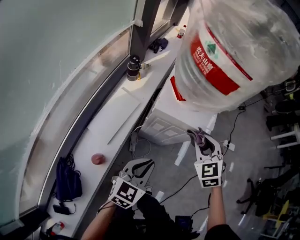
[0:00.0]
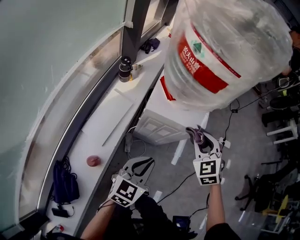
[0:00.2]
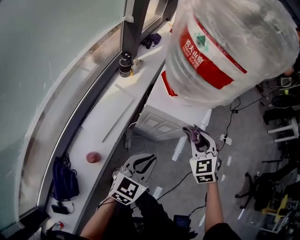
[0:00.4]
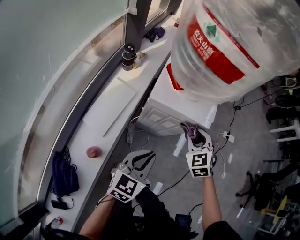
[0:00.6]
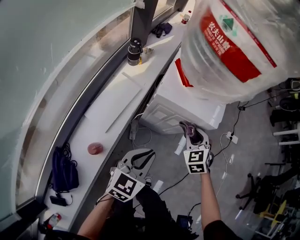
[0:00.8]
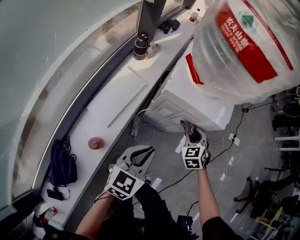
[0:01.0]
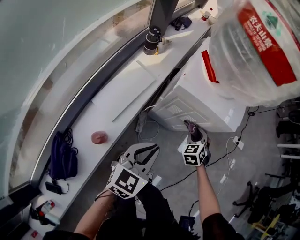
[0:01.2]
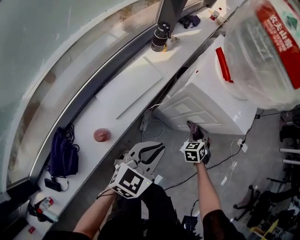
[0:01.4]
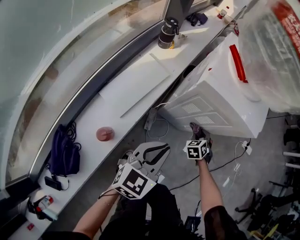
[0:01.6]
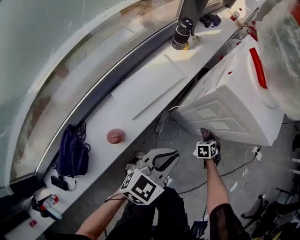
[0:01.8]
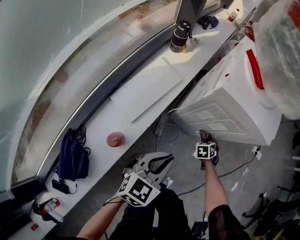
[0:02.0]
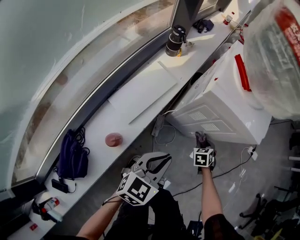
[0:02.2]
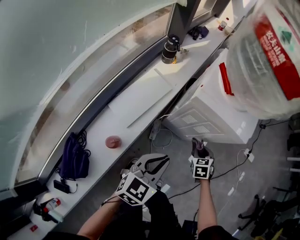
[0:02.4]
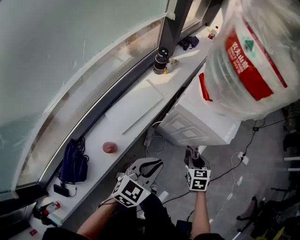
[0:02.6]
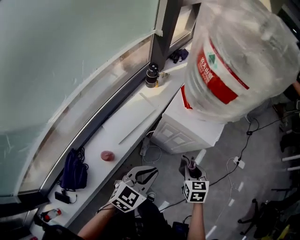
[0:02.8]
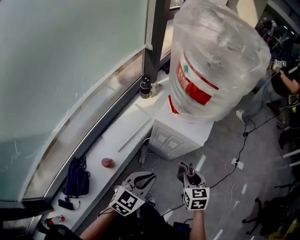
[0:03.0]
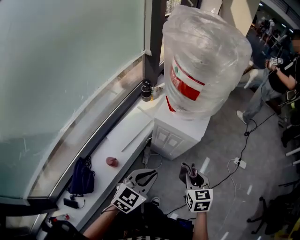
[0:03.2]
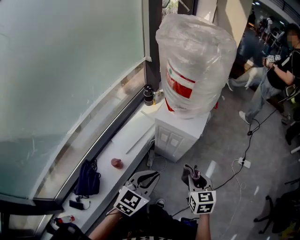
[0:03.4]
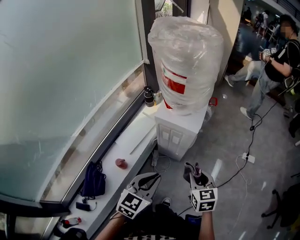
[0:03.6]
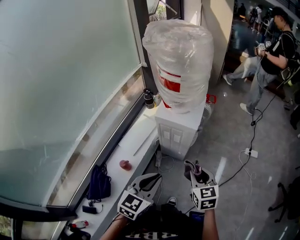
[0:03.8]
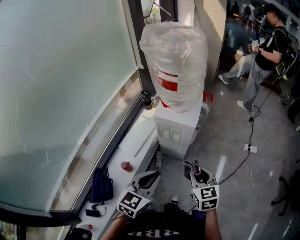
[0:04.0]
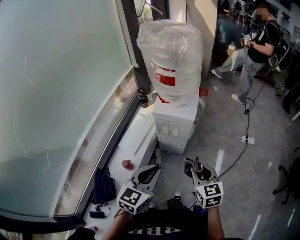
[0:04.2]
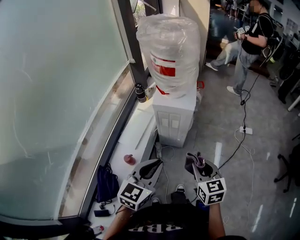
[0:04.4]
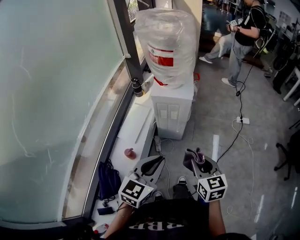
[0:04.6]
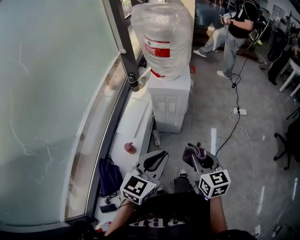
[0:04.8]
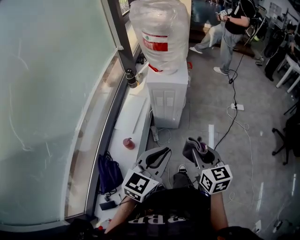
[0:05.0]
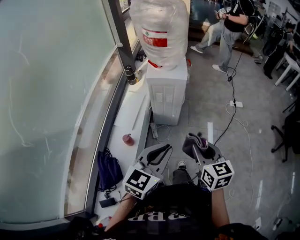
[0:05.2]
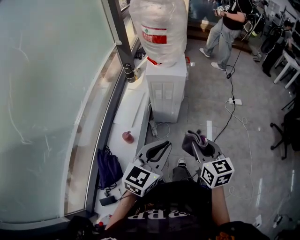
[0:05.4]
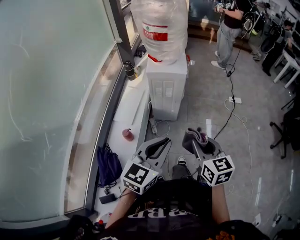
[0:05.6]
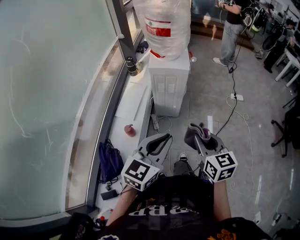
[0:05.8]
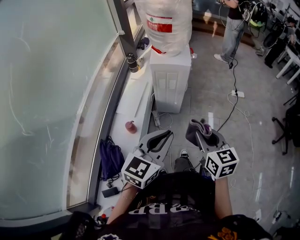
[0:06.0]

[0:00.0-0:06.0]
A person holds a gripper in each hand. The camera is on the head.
0:00.0 to 0:01.6: The left gripper heads downward, covering some 10 cm. Meanwhile the right gripper heads downward, covering roughly 40 cm, and rotates roughly 20 degrees.
0:01.6 to 0:03.0: The left gripper moves upward, about 20 cm, while the right gripper shifts about 35 cm upward, and changes its angle by approximately 40 degrees.
0:03.0 to 0:04.4: The two grippers go approximately 25 cm backward and upward.
0:04.4 to 0:06.0: Both grippers travel together backward, roughly 15 cm.

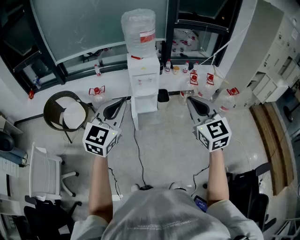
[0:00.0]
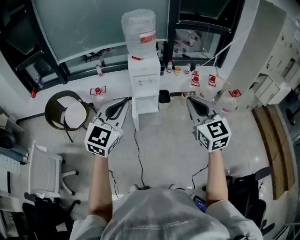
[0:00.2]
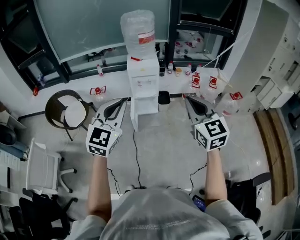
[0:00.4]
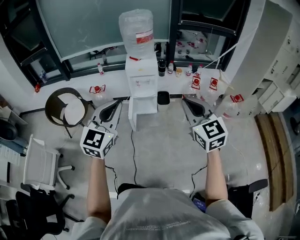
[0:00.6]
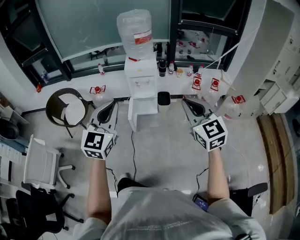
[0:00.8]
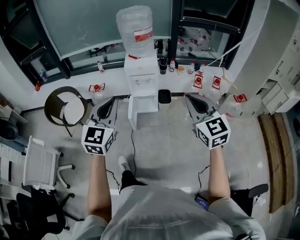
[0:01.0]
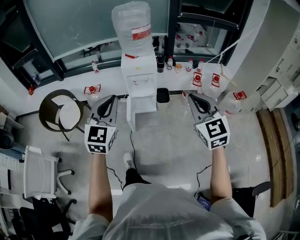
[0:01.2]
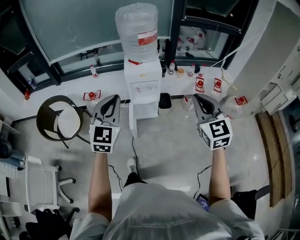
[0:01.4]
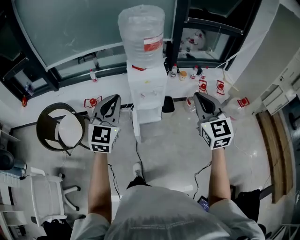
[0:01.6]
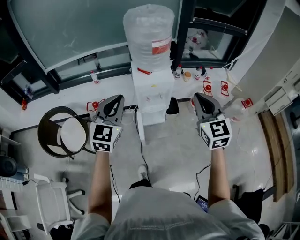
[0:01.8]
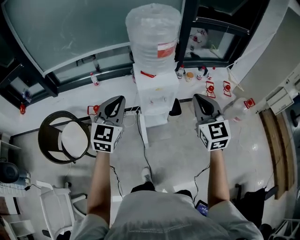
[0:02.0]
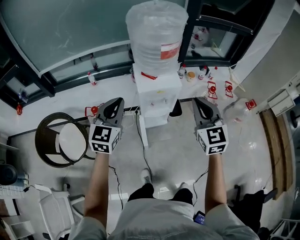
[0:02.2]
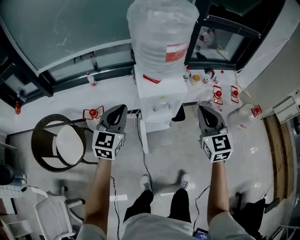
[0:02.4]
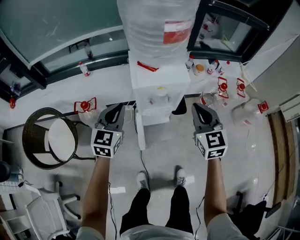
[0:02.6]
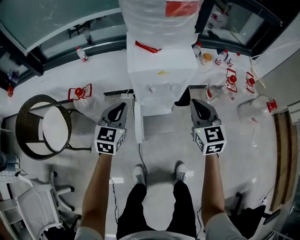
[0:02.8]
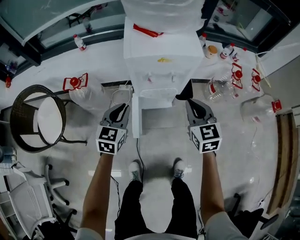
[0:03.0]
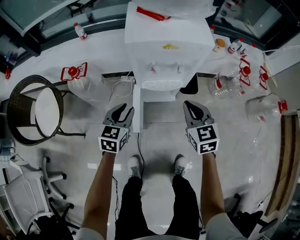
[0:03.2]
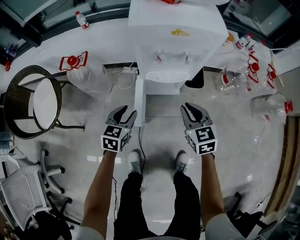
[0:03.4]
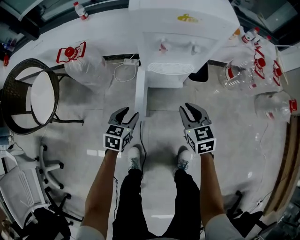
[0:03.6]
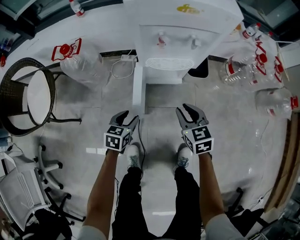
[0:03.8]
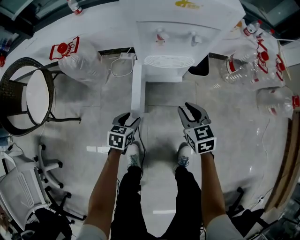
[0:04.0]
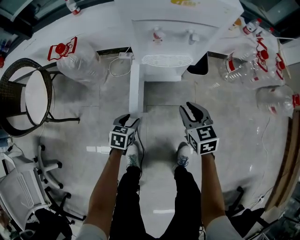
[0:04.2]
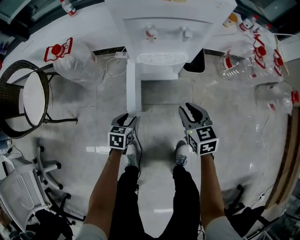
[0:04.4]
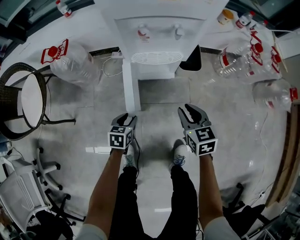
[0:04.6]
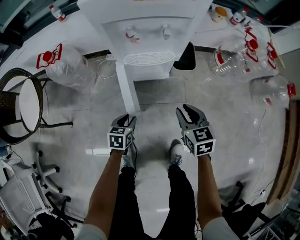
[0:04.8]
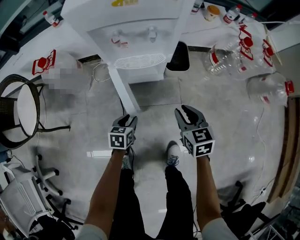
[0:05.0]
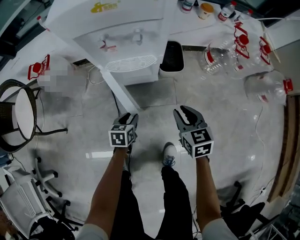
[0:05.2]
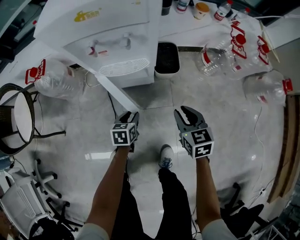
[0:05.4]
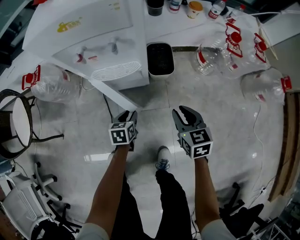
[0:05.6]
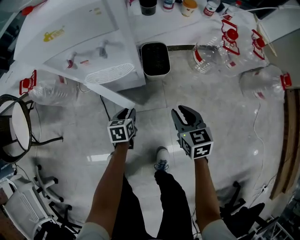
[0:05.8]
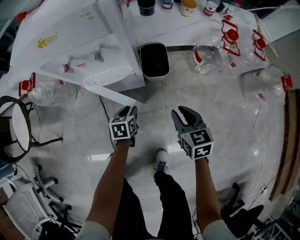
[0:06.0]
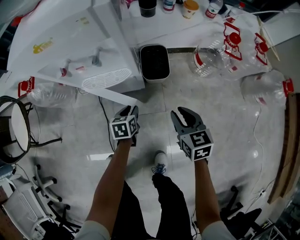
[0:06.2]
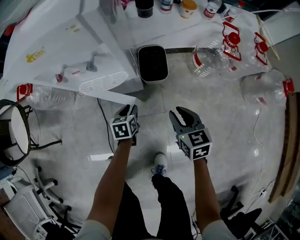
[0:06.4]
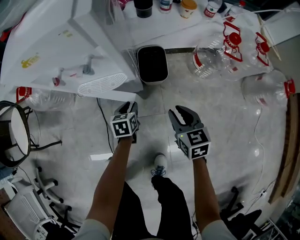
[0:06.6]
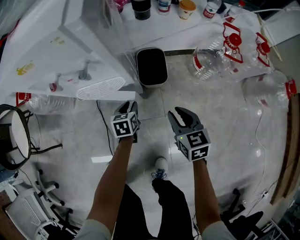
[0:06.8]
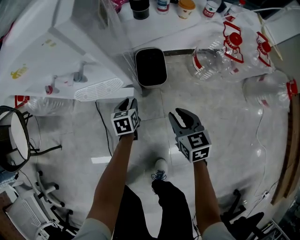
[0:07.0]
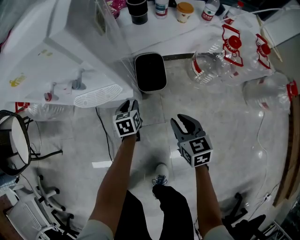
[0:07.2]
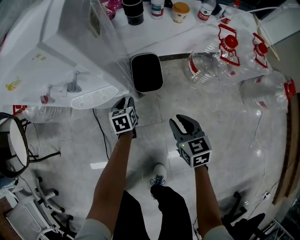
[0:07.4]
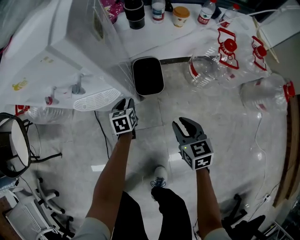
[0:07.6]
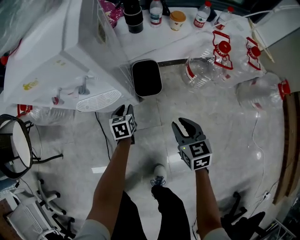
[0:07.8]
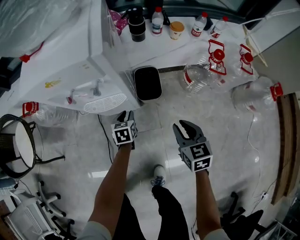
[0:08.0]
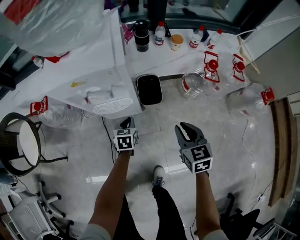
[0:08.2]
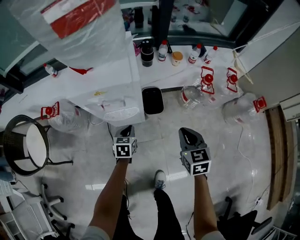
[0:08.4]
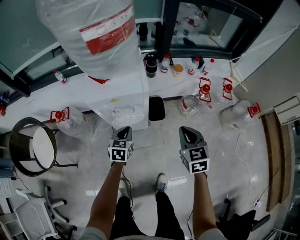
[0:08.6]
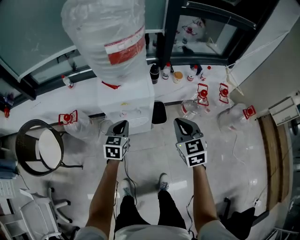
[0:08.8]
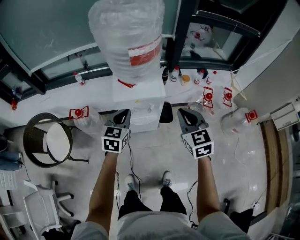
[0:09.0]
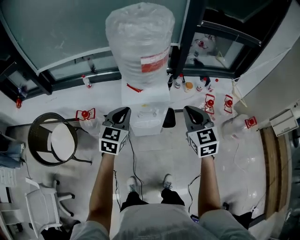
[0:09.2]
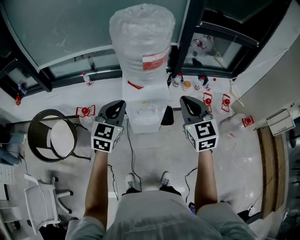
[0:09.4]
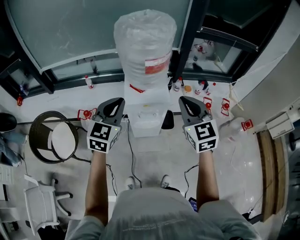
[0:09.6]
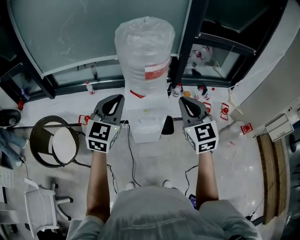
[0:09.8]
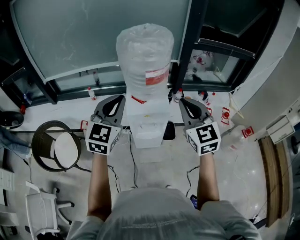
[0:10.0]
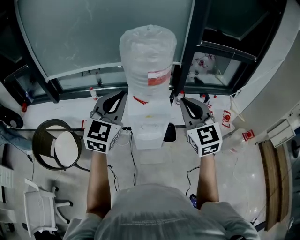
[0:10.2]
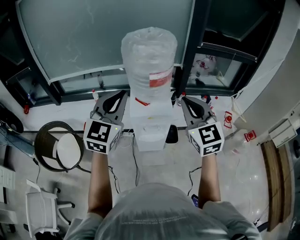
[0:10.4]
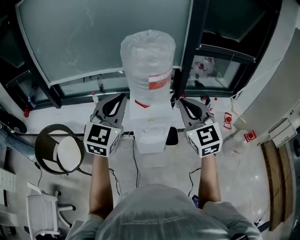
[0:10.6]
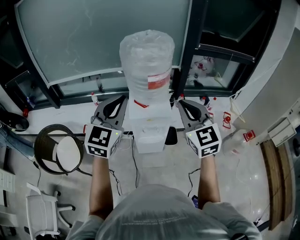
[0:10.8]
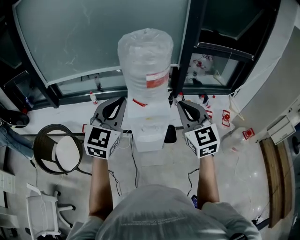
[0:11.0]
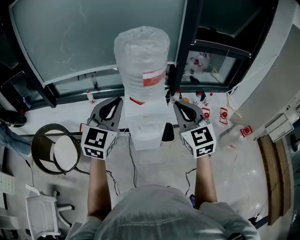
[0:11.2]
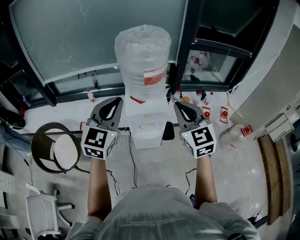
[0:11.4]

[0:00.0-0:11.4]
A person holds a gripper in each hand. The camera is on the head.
0:00.0 to 0:01.4: Both grippers travel together forward, roughly 20 cm.
0:01.4 to 0:02.8: Both grippers travel together downward and forward, roughly 50 cm. The left gripper changes its angle by approximately 30 degrees.
0:02.8 to 0:04.2: Both grippers move downward, some 35 cm. The left gripper points its fingers approximately 30 degrees further downward, and opens its fingers; the right gripper turns by roughly 20 degrees, and opens up.
0:04.2 to 0:05.6: The right gripper heads to the right, covering roughly 20 cm, while the left gripper heads to the right and forward, covering some 20 cm.
0:05.6 to 0:07.2: The right gripper travels to the right, forward and downward by about 10 cm, while the left gripper is displaced forward and to the right by approximately 20 cm.
0:07.2 to 0:08.6: The grippers both shift upward by some 35 cm. The right gripper closes, while the left gripper changes its angle by some 20 degrees, and closes up.
0:08.6 to 0:10.0: The left gripper moves upward, about 50 cm, and tips its fingers upward by some 40 degrees. Meanwhile the right gripper shifts approximately 40 cm upward and to the left, and swivels approximately 30 degrees.
0:10.0 to 0:11.4: The grippers make only small movements.

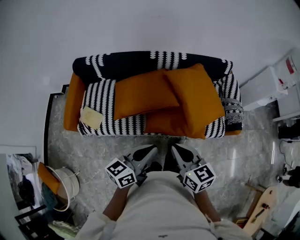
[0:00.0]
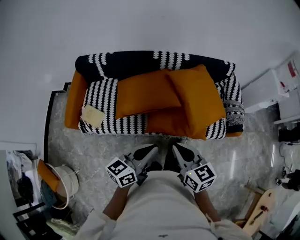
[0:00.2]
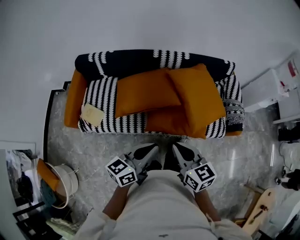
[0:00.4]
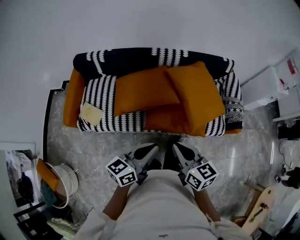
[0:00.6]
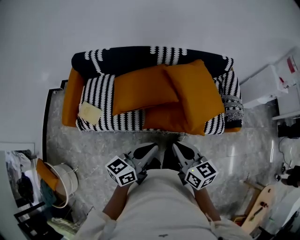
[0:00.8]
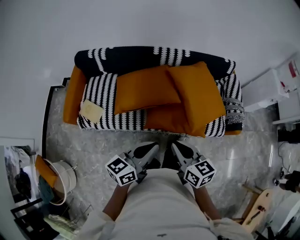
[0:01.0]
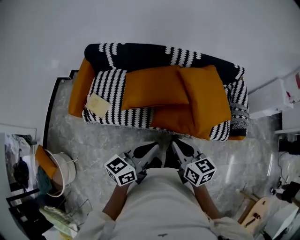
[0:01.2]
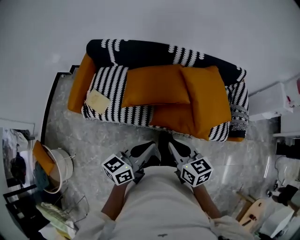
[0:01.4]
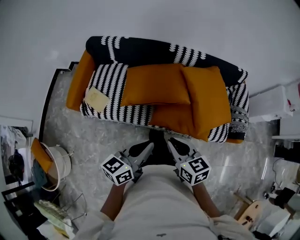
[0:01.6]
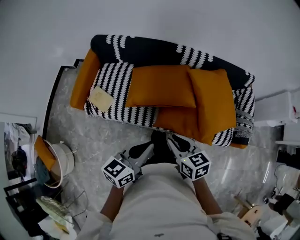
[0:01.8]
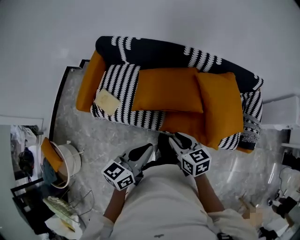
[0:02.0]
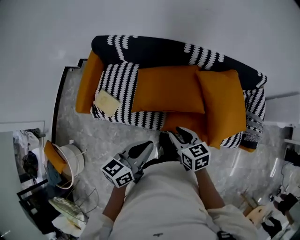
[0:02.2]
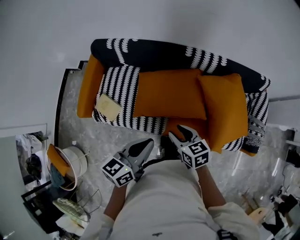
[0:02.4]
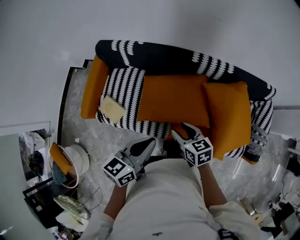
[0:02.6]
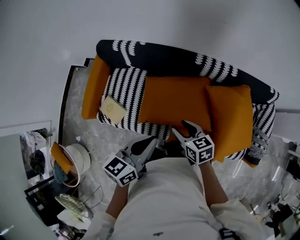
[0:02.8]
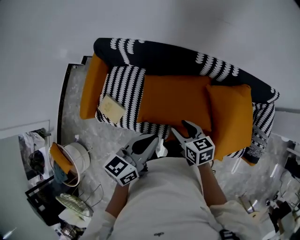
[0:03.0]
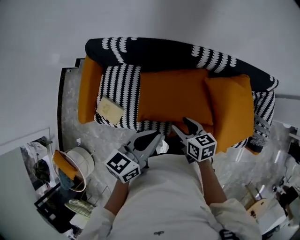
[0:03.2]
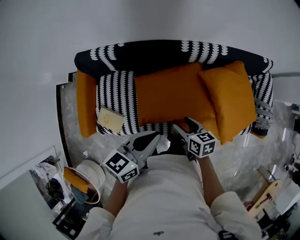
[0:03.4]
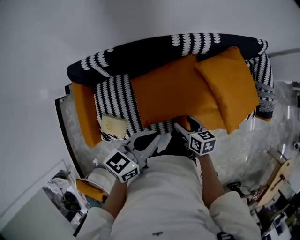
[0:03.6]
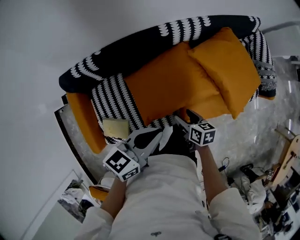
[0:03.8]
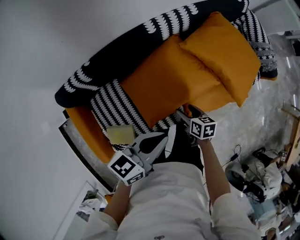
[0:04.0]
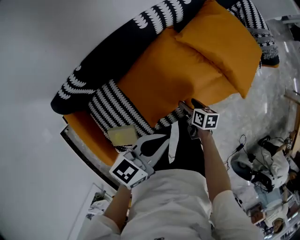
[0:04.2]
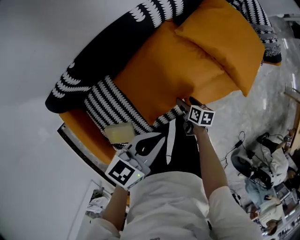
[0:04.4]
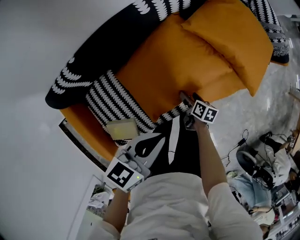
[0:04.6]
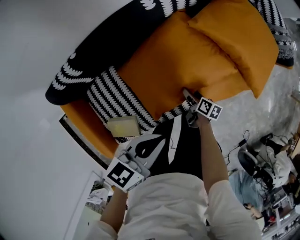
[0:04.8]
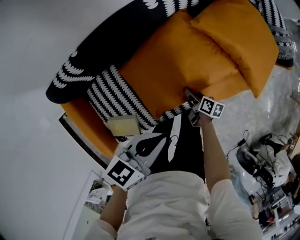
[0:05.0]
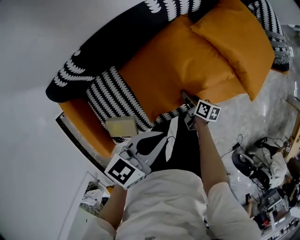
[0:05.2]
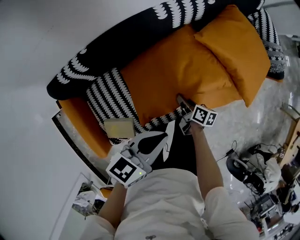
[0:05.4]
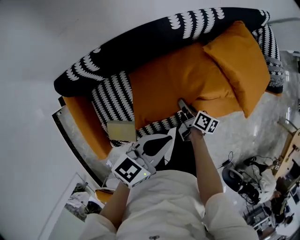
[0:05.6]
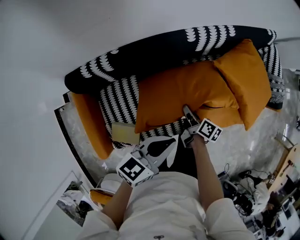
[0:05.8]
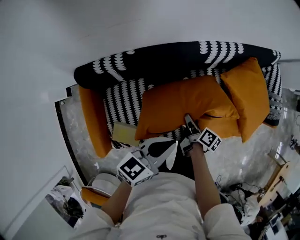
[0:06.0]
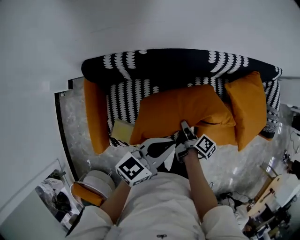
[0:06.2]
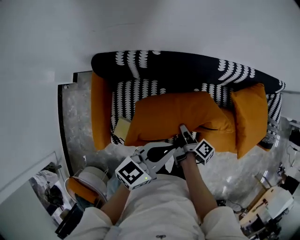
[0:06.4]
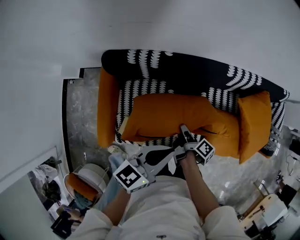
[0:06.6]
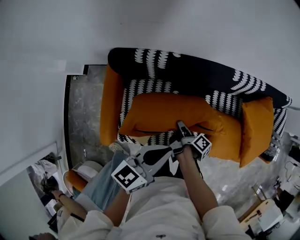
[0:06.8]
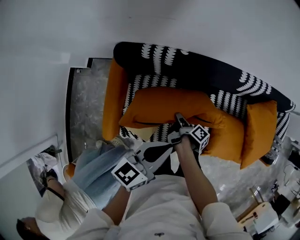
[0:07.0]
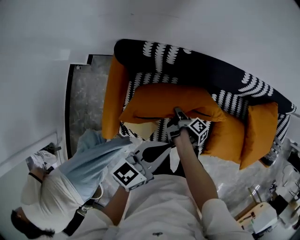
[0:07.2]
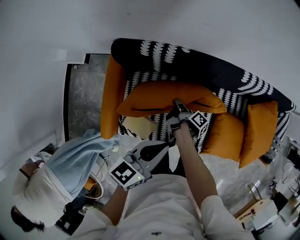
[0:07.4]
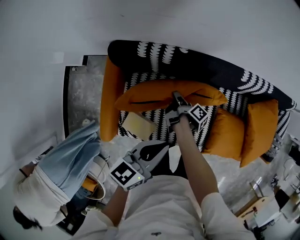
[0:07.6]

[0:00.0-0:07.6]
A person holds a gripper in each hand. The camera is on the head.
0:00.0 to 0:01.6: Both grippers move to the left, about 5 cm.
0:01.6 to 0:03.0: The grippers both shift forward by roughly 30 cm. The right gripper opens up.
0:03.0 to 0:04.6: The left gripper moves downward, approximately 15 cm, and rotates roughly 50 degrees. Meanwhile the right gripper is displaced downward by some 30 cm, rolls clockwise, seen from behind, by approximately 70 degrees, and opens its fingers.
0:04.6 to 0:06.0: The left gripper heads to the left and upward, covering some 10 cm; the right gripper heads upward and to the left, covering some 25 cm, changes its angle by about 20 degrees, and closes.
0:06.0 to 0:07.6: Both grippers travel together to the left, approximately 20 cm. The left gripper swivels roughly 20 degrees. Meanwhile the right gripper turns by approximately 20 degrees.
